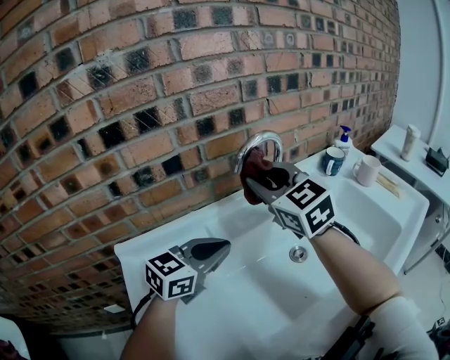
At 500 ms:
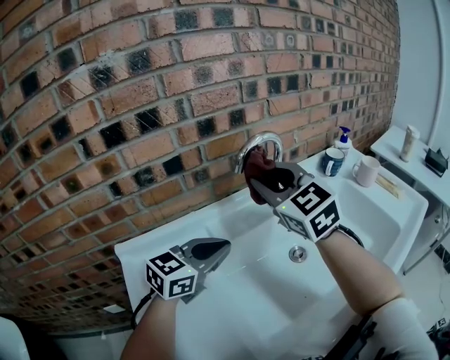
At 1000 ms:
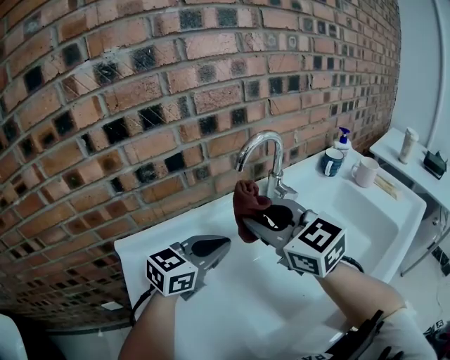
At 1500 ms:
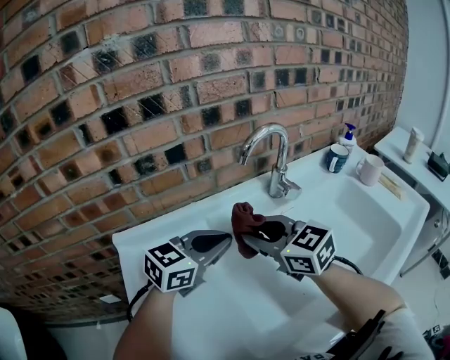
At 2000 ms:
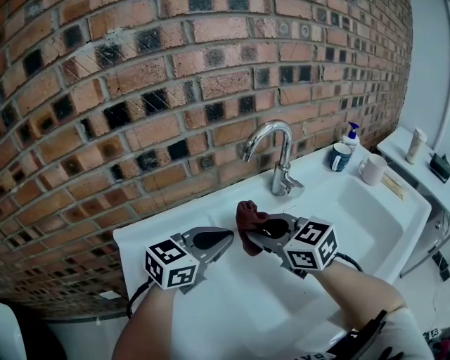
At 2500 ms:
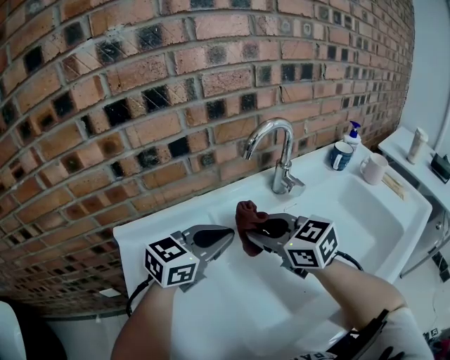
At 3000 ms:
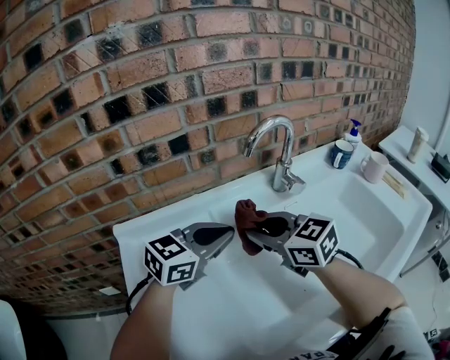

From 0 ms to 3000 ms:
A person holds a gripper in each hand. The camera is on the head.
From 0 ms to 1500 ms: The right gripper travels downward and backward by about 15 cm, and rotates roughly 30 degrees.
From 1500 ms to 3000 ms: There are only small adjustments of the grippers.

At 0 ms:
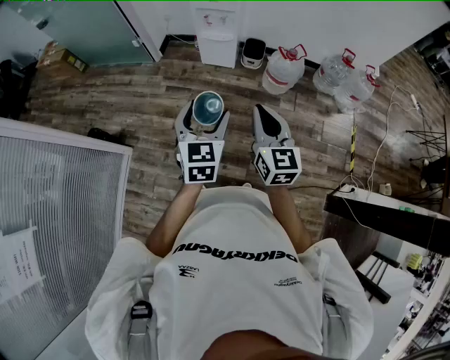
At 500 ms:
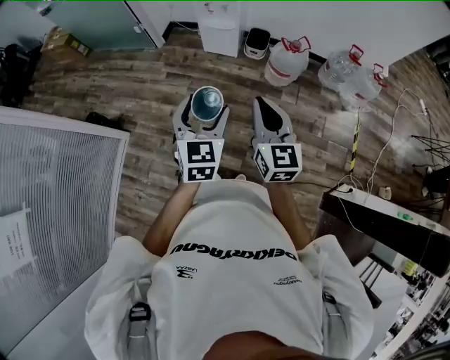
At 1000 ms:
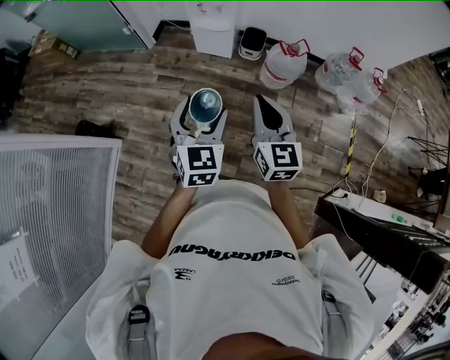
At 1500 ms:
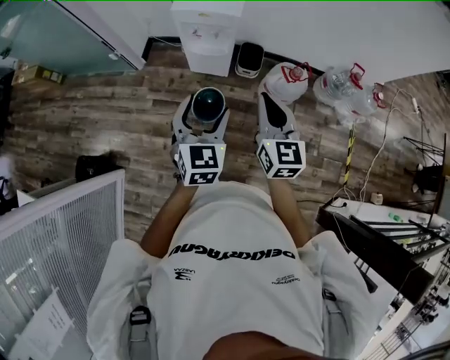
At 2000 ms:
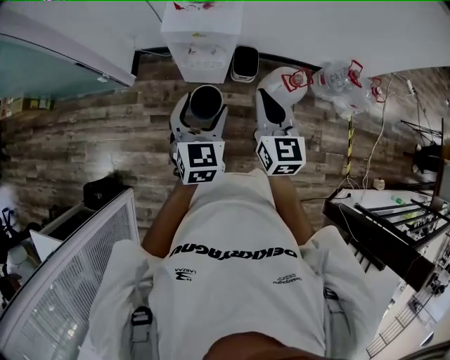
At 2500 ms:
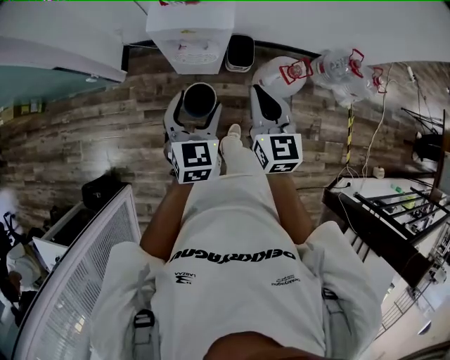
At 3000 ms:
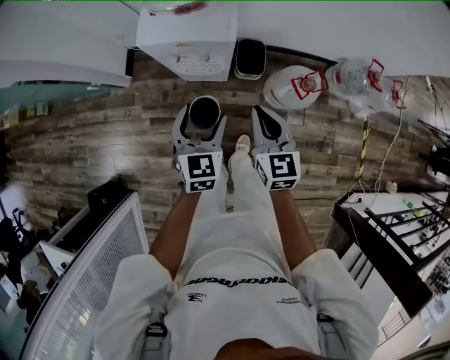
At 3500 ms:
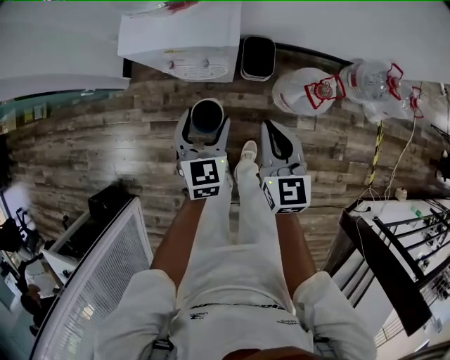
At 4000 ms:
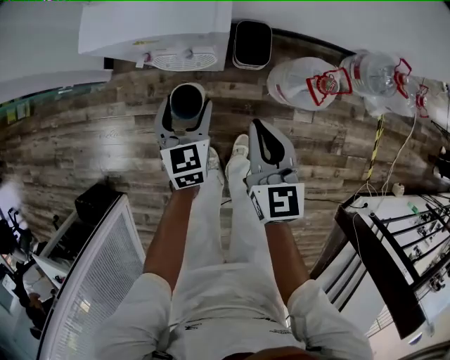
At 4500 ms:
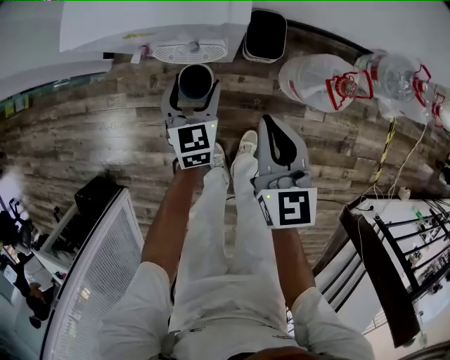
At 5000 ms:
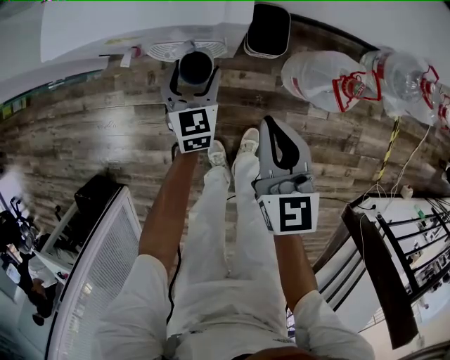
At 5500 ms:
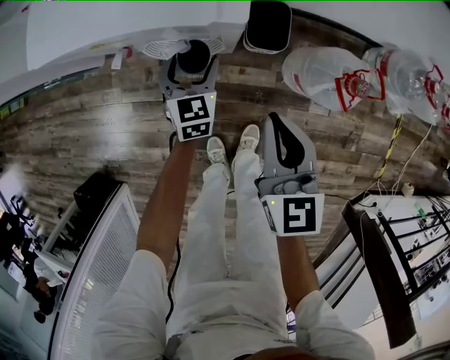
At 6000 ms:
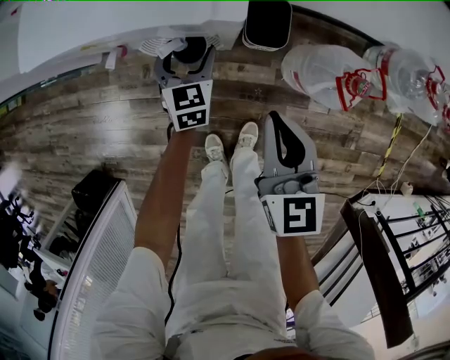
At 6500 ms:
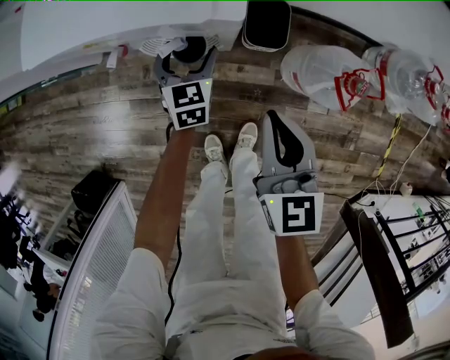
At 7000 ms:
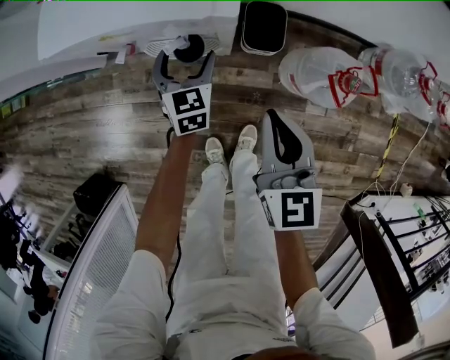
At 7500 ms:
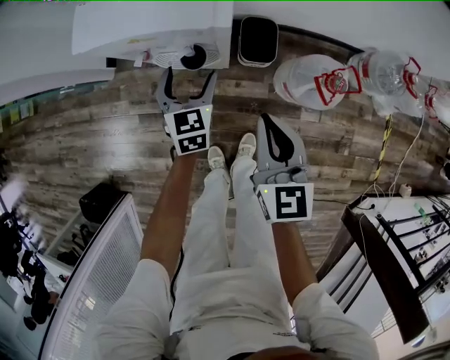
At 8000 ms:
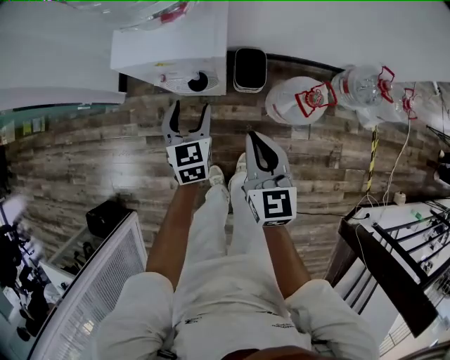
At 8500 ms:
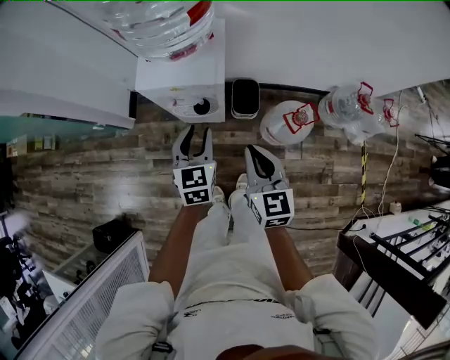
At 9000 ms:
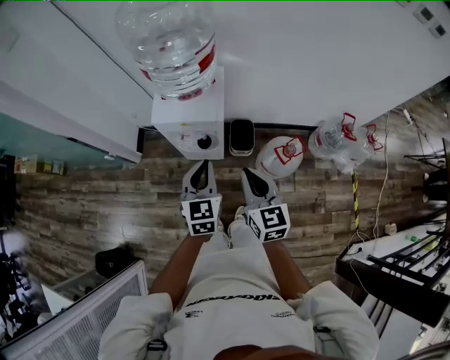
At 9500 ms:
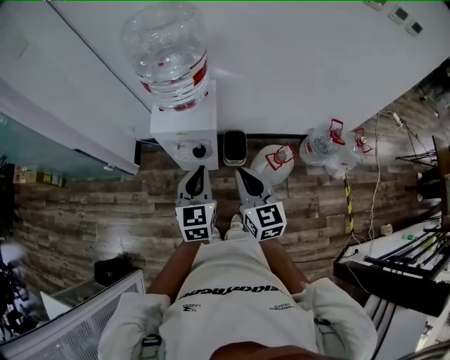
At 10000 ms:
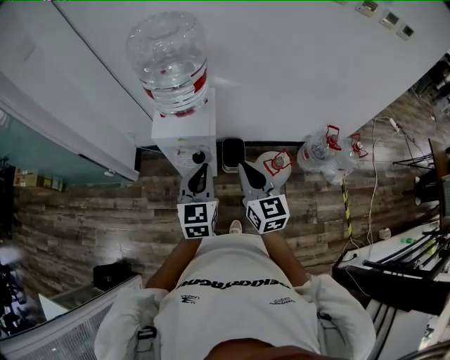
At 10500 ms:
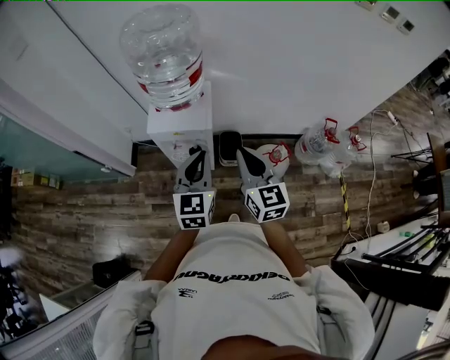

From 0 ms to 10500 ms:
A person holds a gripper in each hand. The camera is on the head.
From 0 ms to 2000 ms: Both grippers are carried forward, roughly 50 cm.
From 2000 ms to 4000 ms: Both grippers move downward and forward, about 35 cm.
From 4000 ms to 6500 ms: The left gripper is displaced downward and forward by about 20 cm. Meanwhile the right gripper goes approximately 10 cm downward.
From 6500 ms to 8500 ms: The left gripper travels upward and backward by some 40 cm, and closes; the right gripper travels upward by about 25 cm.
From 8500 ms to 10500 ms: Both grippers travel together upward, some 20 cm.

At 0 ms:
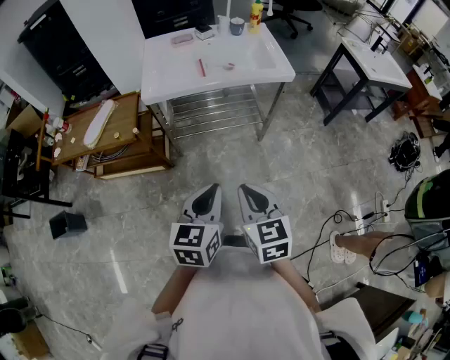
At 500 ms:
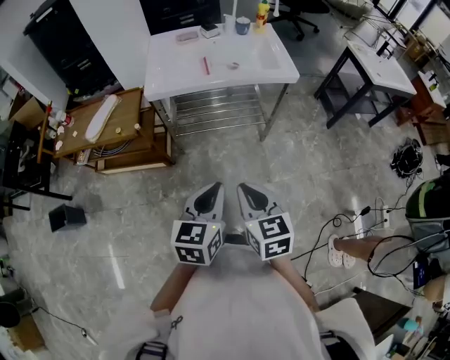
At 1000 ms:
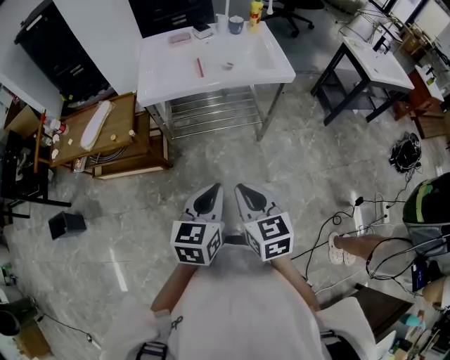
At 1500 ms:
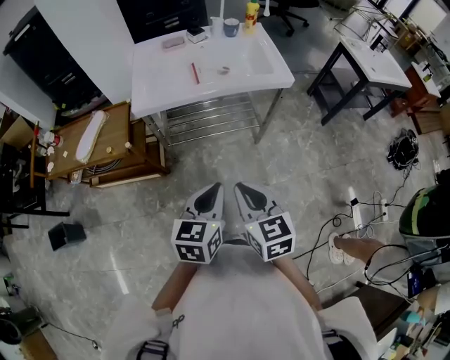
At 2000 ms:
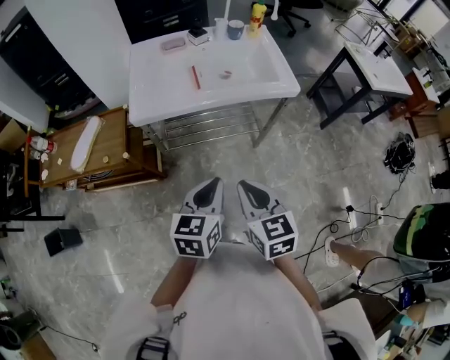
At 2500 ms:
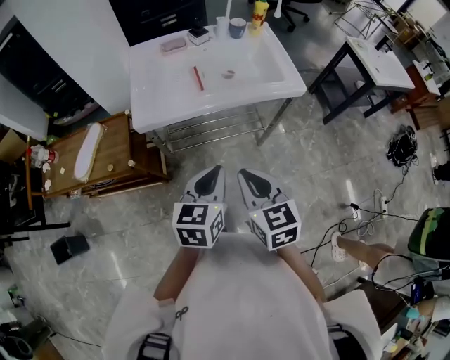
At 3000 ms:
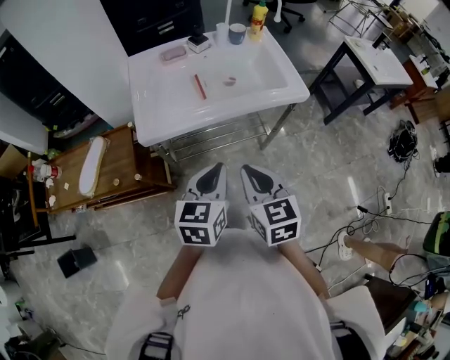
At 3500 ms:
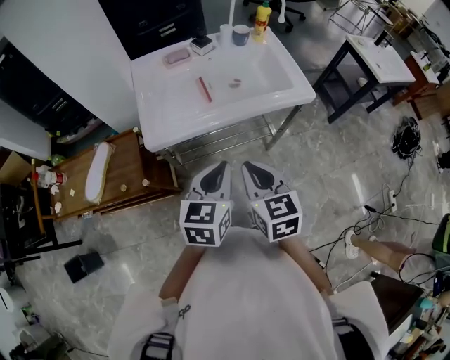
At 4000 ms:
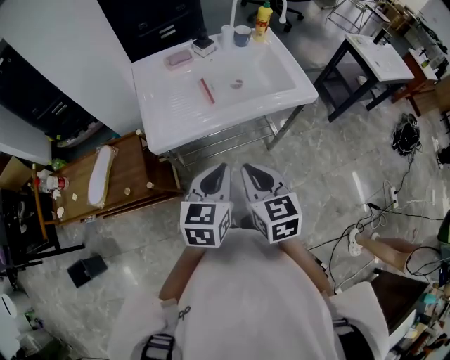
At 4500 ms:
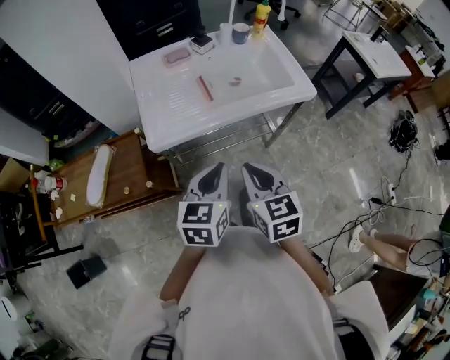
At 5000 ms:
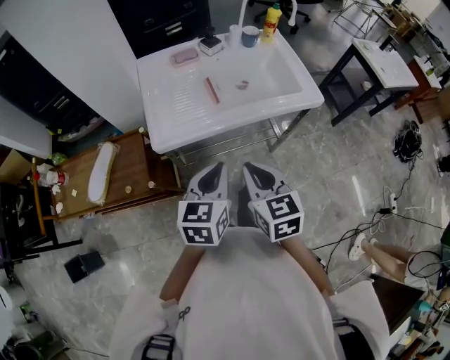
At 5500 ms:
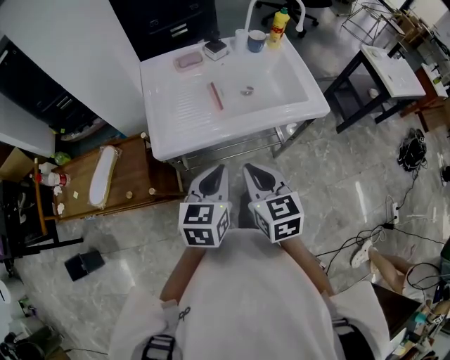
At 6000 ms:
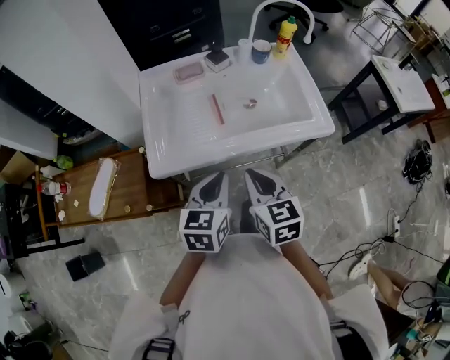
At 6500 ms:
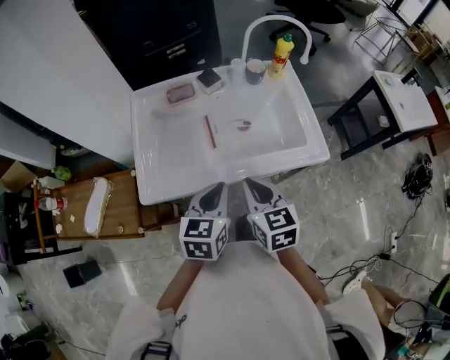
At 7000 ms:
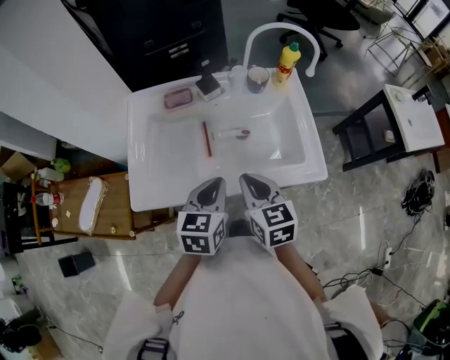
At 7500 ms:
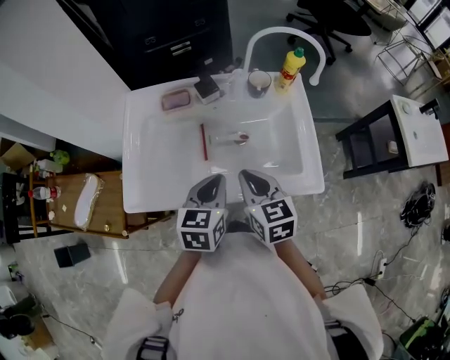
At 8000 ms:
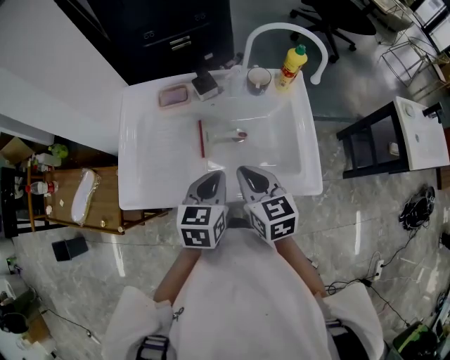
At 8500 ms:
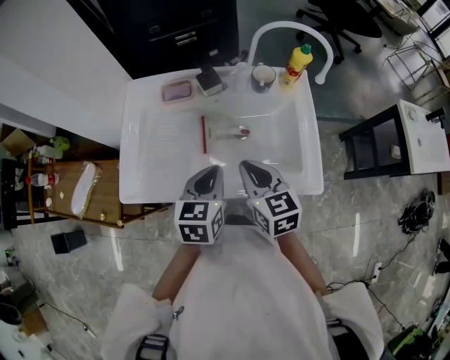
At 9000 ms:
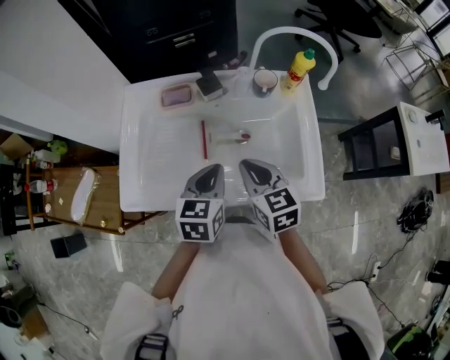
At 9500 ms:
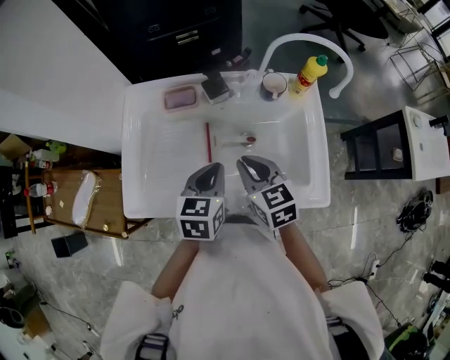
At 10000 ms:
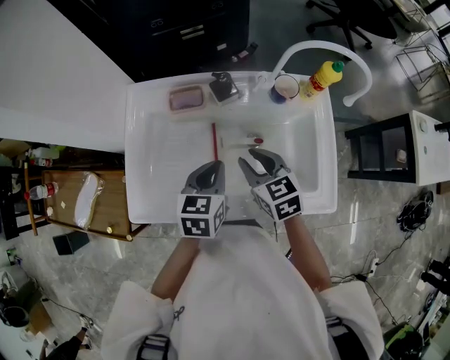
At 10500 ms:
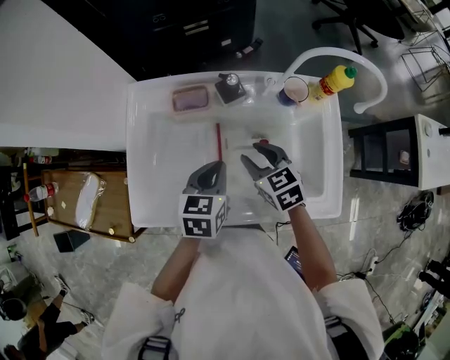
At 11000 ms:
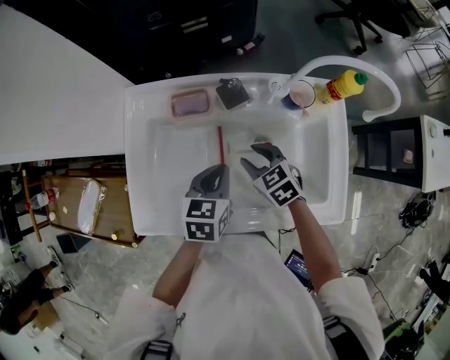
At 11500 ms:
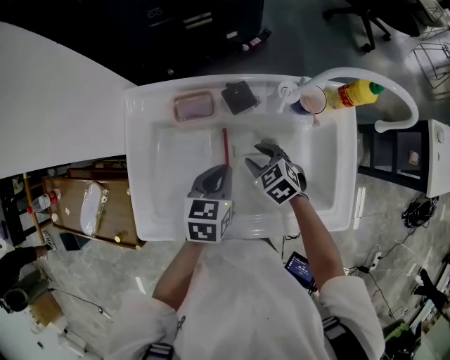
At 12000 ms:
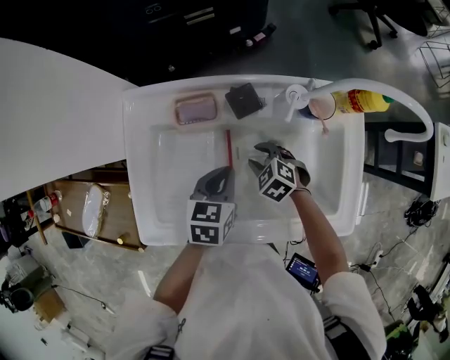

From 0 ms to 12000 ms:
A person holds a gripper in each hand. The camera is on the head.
From 0 ms to 2000 ms: The grippers both shift forward by some 15 cm.
From 2000 ms to 4000 ms: Both grippers move forward and to the left, about 15 cm.
From 4000 ms to 6000 ms: Both grippers travel together forward, roughly 10 cm.
From 6000 ms to 8000 ms: Both grippers travel together forward and to the right, about 20 cm.
From 8000 ms to 10000 ms: The grippers both shift forward by approximately 10 cm. The right gripper opens.
From 10000 ms to 12000 ms: The right gripper goes about 15 cm downward, and rotates roughly 40 degrees; the left gripper is displaced downward and forward by approximately 10 cm.

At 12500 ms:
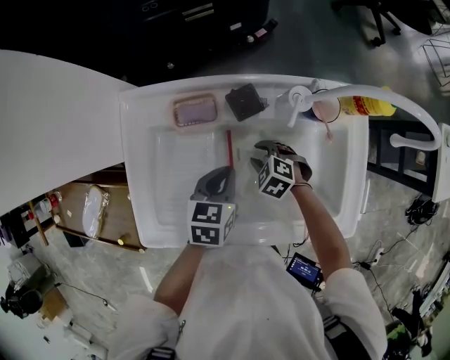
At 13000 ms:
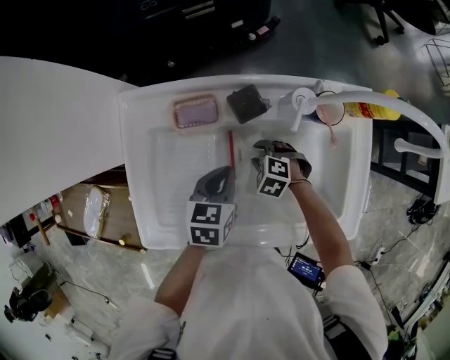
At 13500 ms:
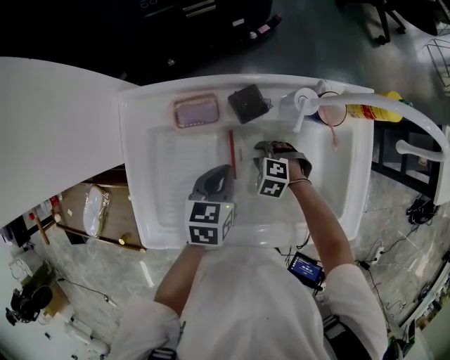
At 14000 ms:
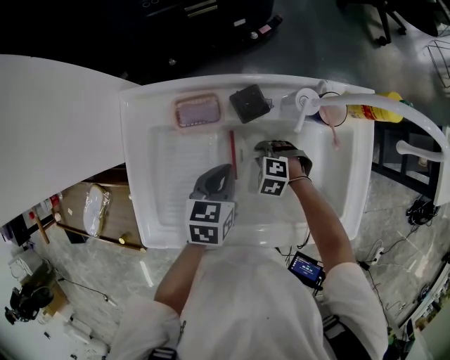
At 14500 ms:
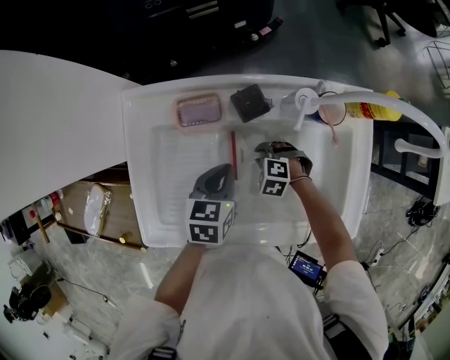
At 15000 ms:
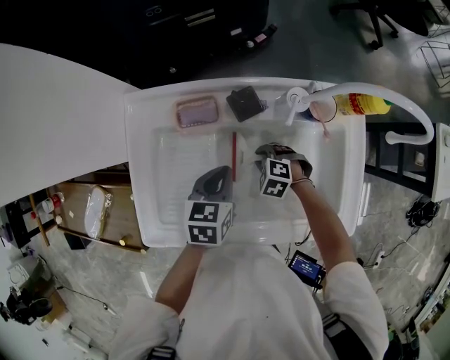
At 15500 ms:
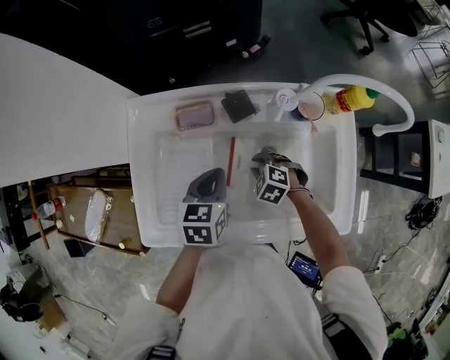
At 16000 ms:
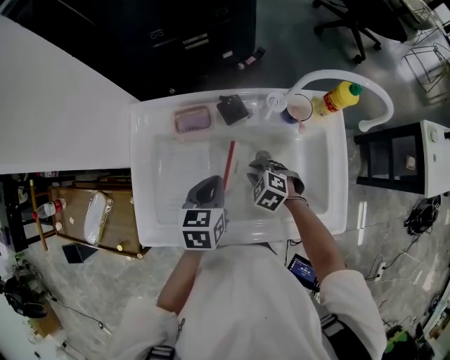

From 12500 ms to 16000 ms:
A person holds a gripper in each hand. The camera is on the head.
From 12500 ms to 14500 ms: The grippers make only small movements.
From 14500 ms to 16000 ms: The right gripper travels upward by roughly 10 cm, and swivels about 20 degrees. The left gripper shifts by about 5 cm.
